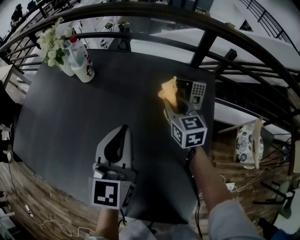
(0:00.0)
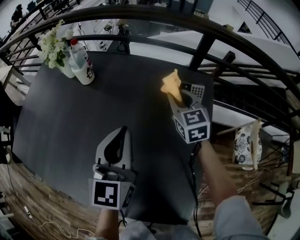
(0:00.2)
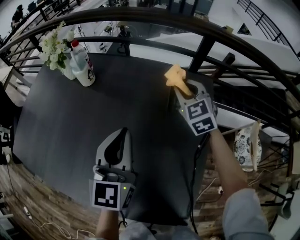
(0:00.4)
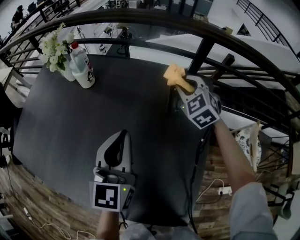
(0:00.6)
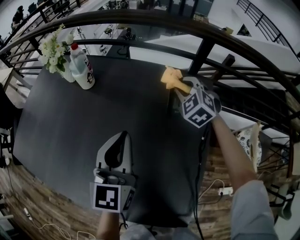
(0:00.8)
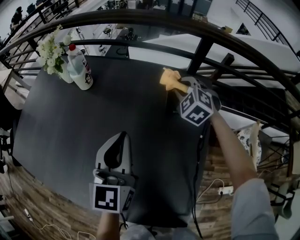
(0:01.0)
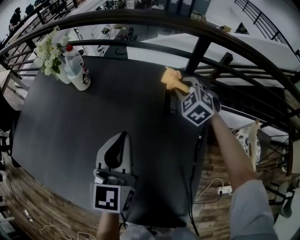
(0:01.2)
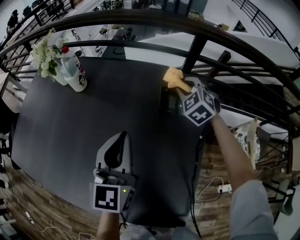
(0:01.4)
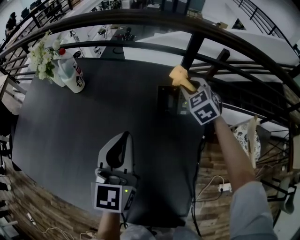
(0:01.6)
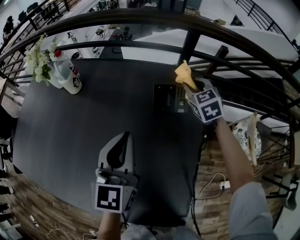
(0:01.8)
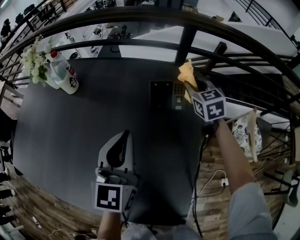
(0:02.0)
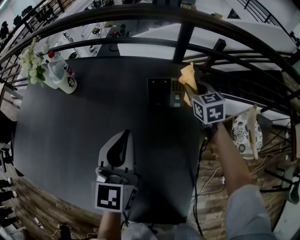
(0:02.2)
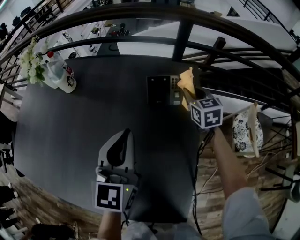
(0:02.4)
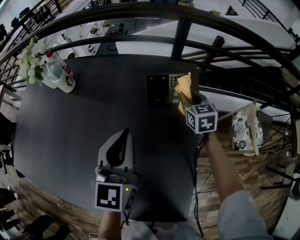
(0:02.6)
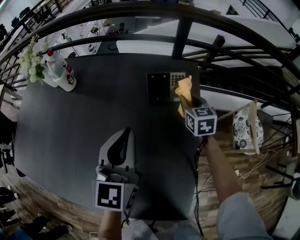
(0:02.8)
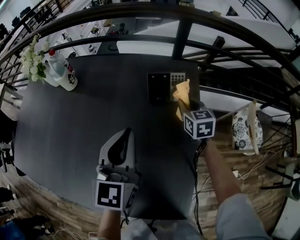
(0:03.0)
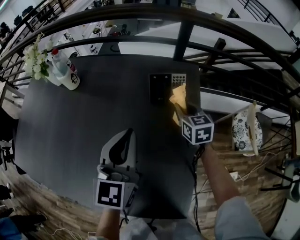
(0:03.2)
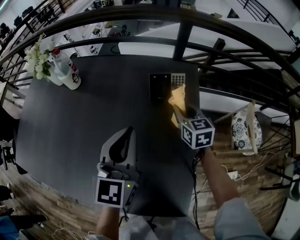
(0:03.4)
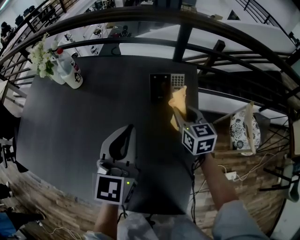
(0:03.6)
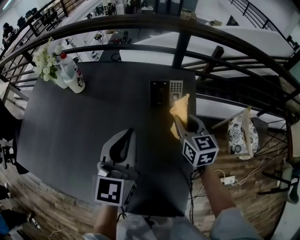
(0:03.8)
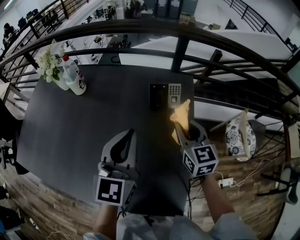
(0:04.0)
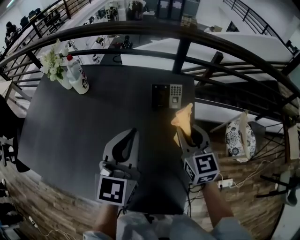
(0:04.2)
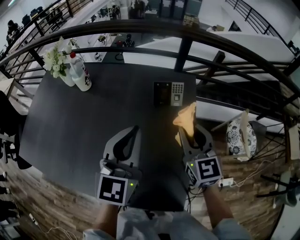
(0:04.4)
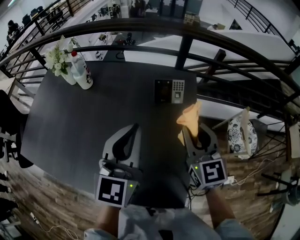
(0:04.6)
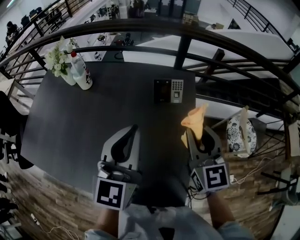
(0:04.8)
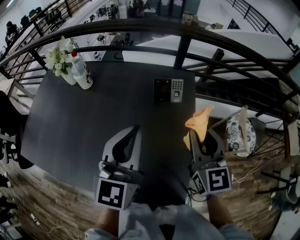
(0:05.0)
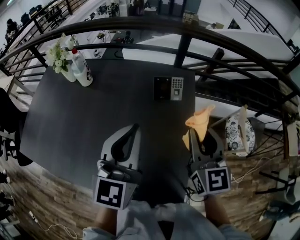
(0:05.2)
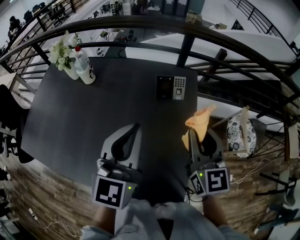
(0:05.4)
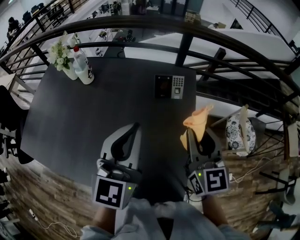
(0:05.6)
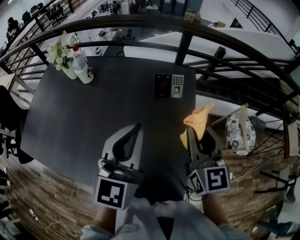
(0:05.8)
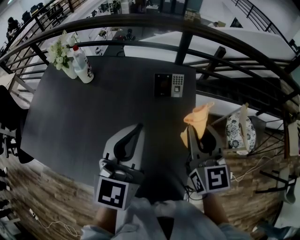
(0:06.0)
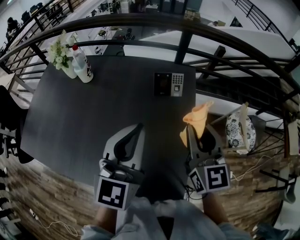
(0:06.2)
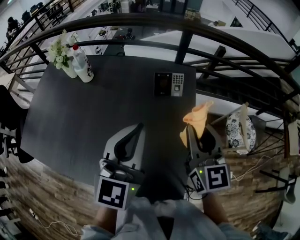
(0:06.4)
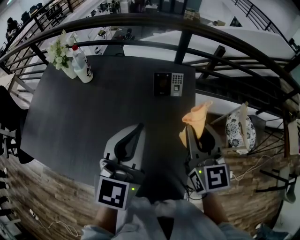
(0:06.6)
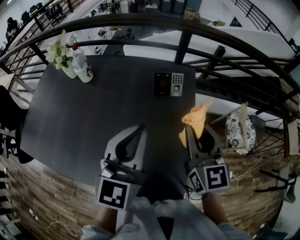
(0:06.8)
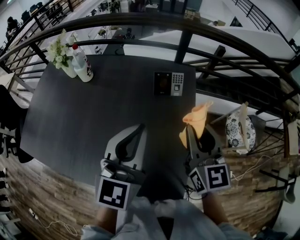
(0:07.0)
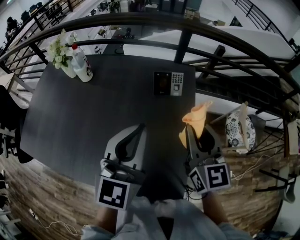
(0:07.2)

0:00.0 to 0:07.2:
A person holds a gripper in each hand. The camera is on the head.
0:00.0 to 0:01.4: The right gripper heads to the right and forward, covering approximately 10 cm, and rotates around the line of its fingers by approximately 40 degrees, counterclockwise from behind.
0:01.4 to 0:02.8: The right gripper heads to the right, backward and downward, covering about 15 cm, and rotates around the line of its fingers by approximately 50 degrees, clockwise from behind, while the left gripper travels to the right by approximately 5 cm.
0:02.8 to 0:04.4: The left gripper travels upward by about 10 cm. Meanwhile the right gripper is displaced upward and backward by about 25 cm, and changes its angle by about 20 degrees.
0:04.4 to 0:05.8: The left gripper shifts by some 5 cm. Meanwhile the right gripper goes approximately 5 cm upward.
0:05.8 to 0:07.2: Both grippers stay put.

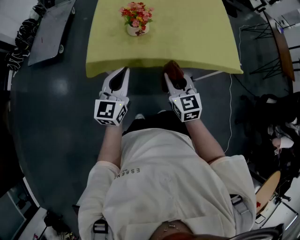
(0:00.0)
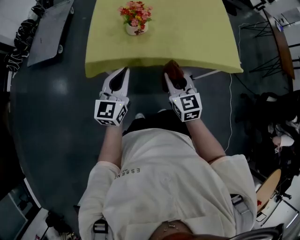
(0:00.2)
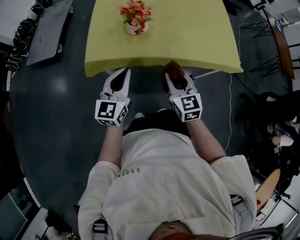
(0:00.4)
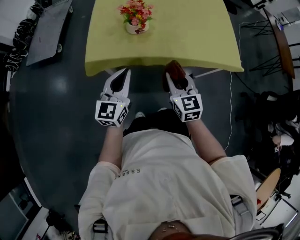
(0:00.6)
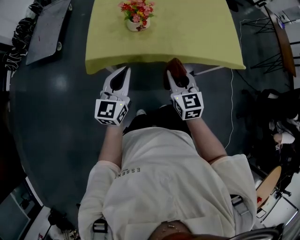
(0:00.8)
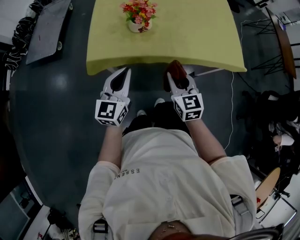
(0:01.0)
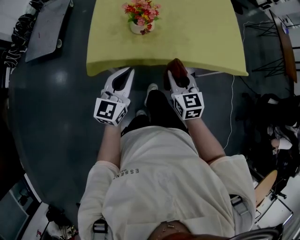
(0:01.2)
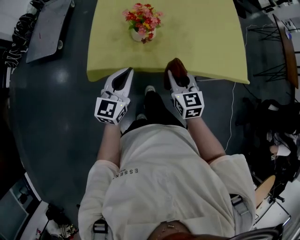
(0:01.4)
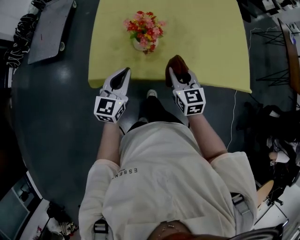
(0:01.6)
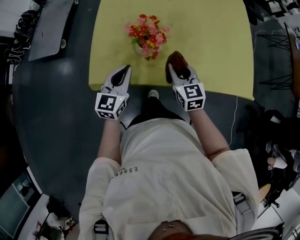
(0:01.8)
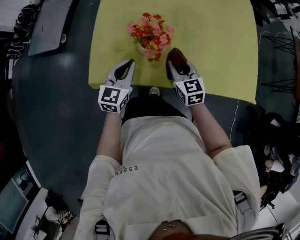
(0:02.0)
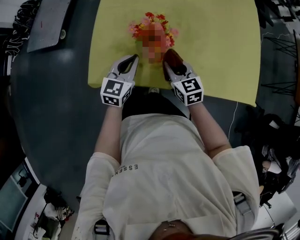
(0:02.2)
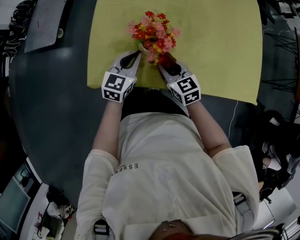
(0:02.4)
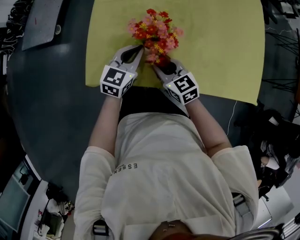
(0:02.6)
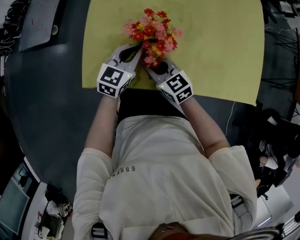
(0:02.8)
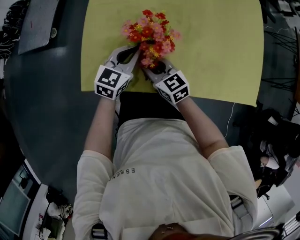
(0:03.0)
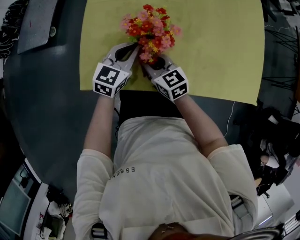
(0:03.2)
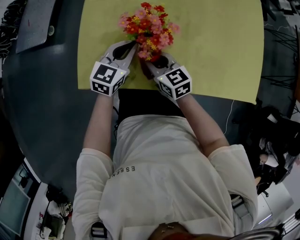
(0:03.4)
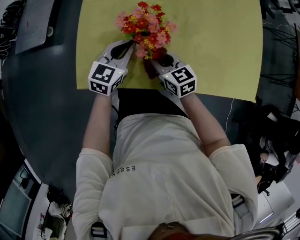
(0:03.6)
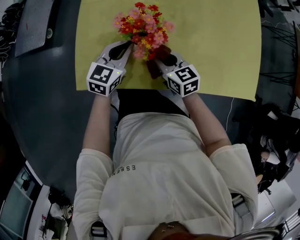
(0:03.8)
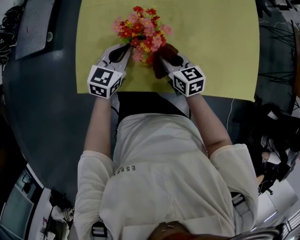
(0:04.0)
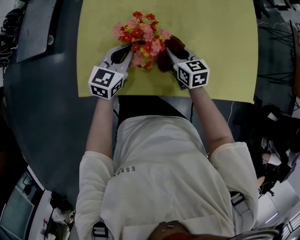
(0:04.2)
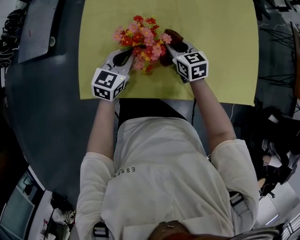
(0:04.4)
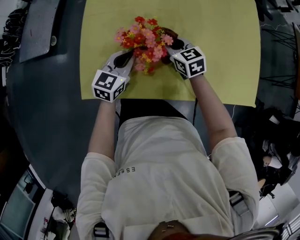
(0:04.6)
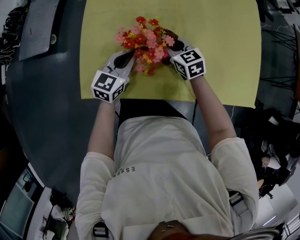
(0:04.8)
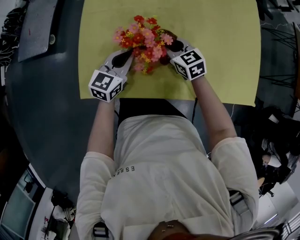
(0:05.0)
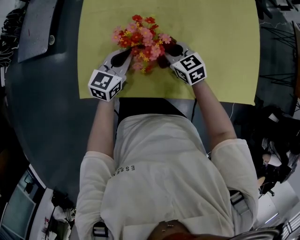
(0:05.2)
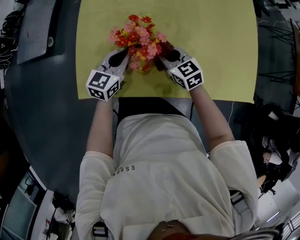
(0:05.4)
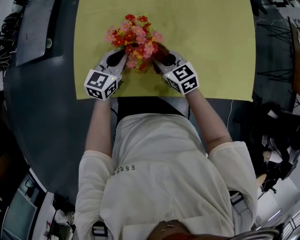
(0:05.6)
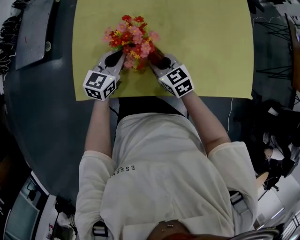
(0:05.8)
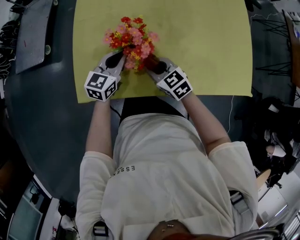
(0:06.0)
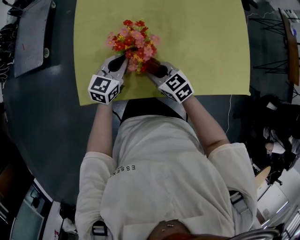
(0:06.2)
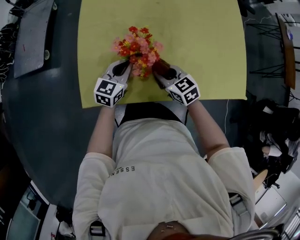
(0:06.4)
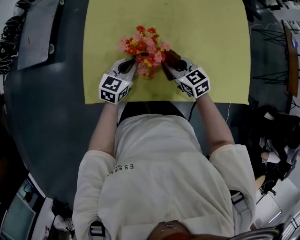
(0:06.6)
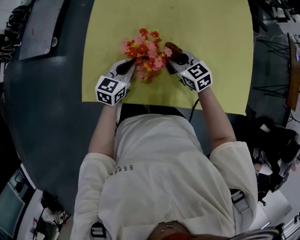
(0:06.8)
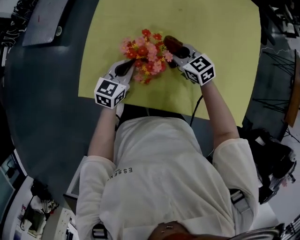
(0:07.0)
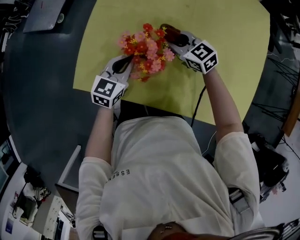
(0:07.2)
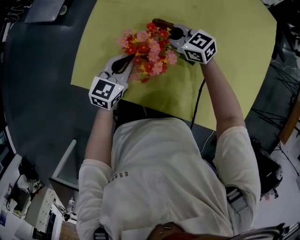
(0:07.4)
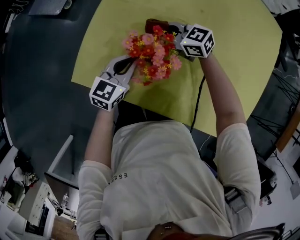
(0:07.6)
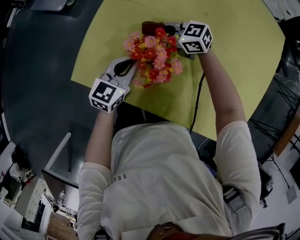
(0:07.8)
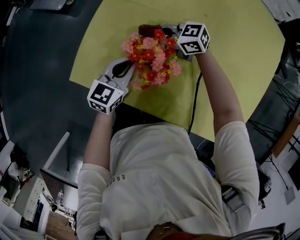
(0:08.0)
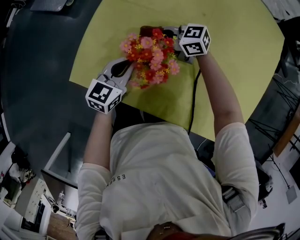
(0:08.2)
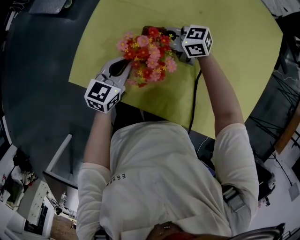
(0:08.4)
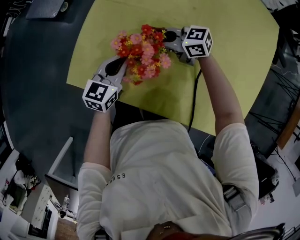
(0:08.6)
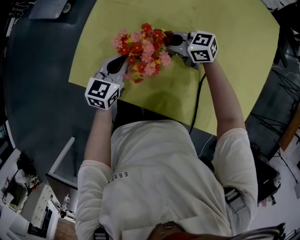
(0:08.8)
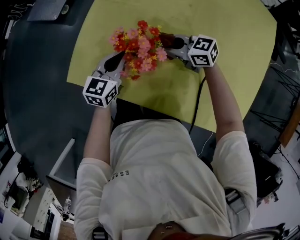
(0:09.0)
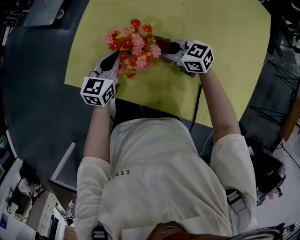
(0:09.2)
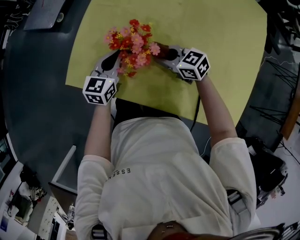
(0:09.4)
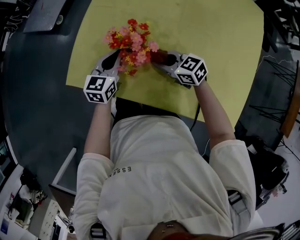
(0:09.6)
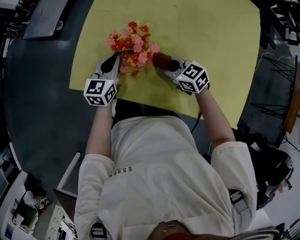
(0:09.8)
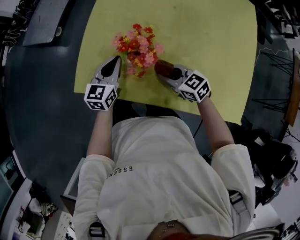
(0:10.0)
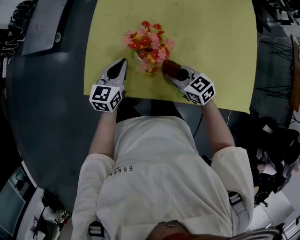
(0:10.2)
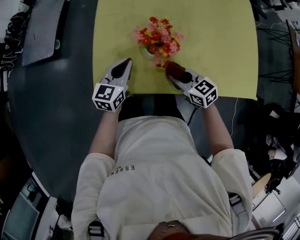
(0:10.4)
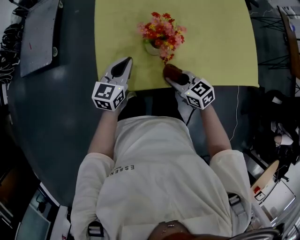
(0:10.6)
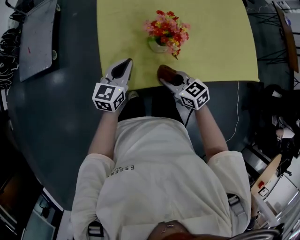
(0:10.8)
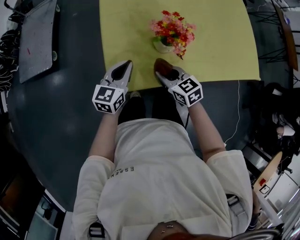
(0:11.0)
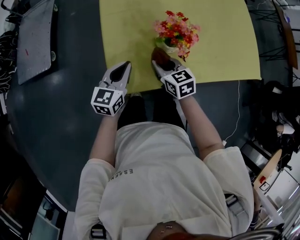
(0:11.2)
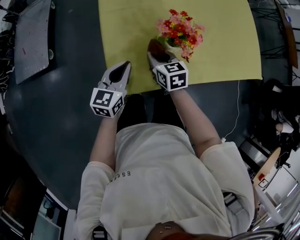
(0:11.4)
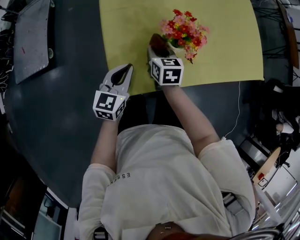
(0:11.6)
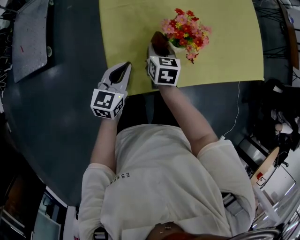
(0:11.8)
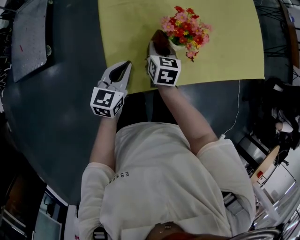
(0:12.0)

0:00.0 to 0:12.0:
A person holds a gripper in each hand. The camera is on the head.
0:00.0 to 0:01.6: The right gripper heads forward, covering some 15 cm, while the left gripper heads forward and downward, covering roughly 15 cm.
0:01.6 to 0:03.0: The right gripper travels to the left, downward and forward by about 20 cm, and turns by approximately 30 degrees; the left gripper moves forward and downward, roughly 15 cm.
0:03.0 to 0:04.4: The right gripper moves to the right and forward, approximately 15 cm.
0:04.4 to 0:06.0: The right gripper heads backward and to the left, covering some 10 cm.
0:06.0 to 0:07.6: The right gripper ends up roughly 15 cm from where it was, and turns by about 40 degrees.
0:07.6 to 0:09.0: The right gripper ends up about 10 cm from where it was.
0:09.0 to 0:10.4: The right gripper moves roughly 15 cm, and swivels approximately 40 degrees. The left gripper changes place by about 10 cm.
0:10.4 to 0:12.0: The right gripper shifts by about 15 cm, and changes its angle by approximately 50 degrees. Meanwhile the left gripper moves approximately 10 cm.

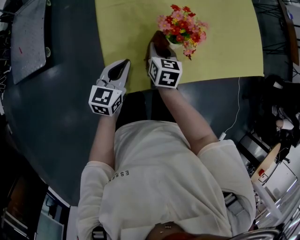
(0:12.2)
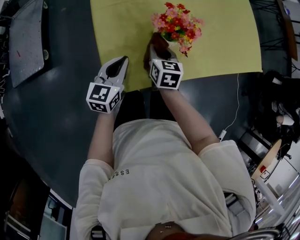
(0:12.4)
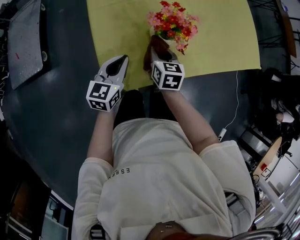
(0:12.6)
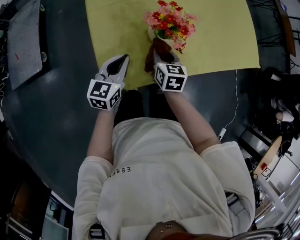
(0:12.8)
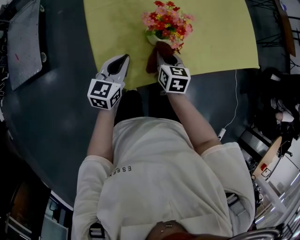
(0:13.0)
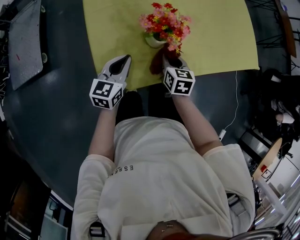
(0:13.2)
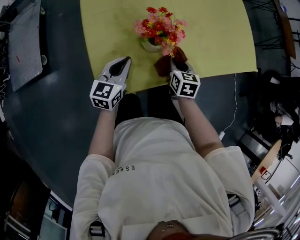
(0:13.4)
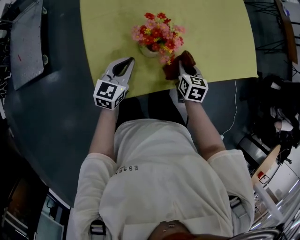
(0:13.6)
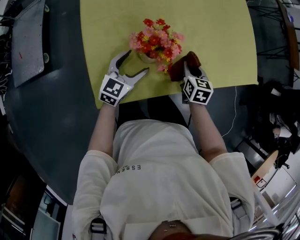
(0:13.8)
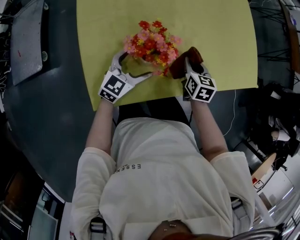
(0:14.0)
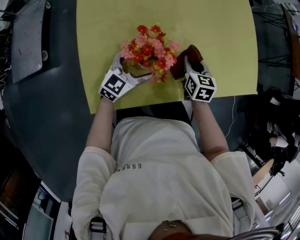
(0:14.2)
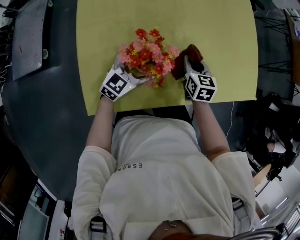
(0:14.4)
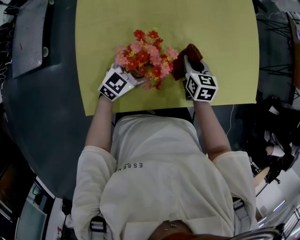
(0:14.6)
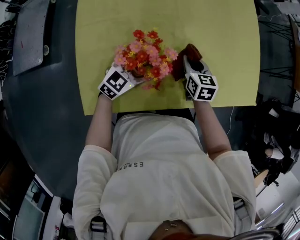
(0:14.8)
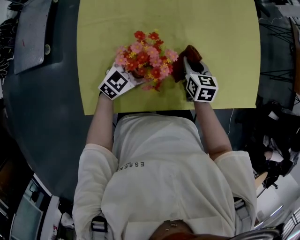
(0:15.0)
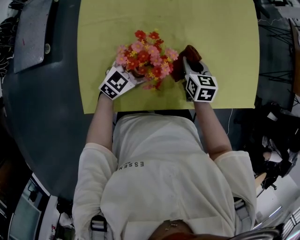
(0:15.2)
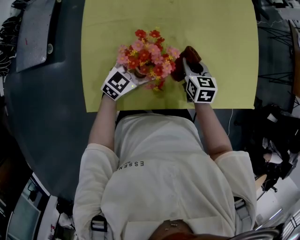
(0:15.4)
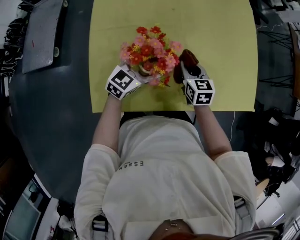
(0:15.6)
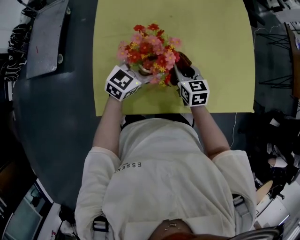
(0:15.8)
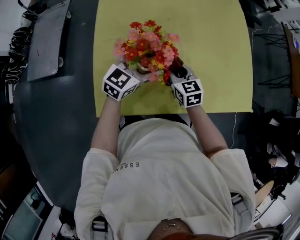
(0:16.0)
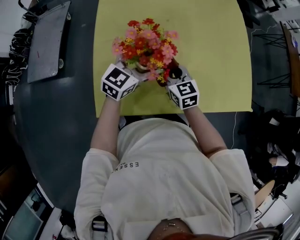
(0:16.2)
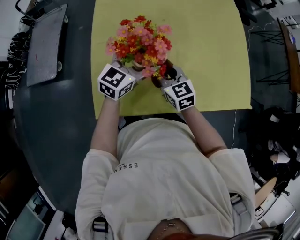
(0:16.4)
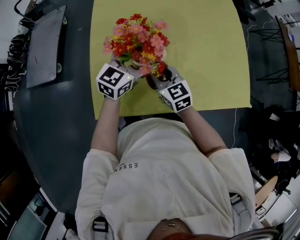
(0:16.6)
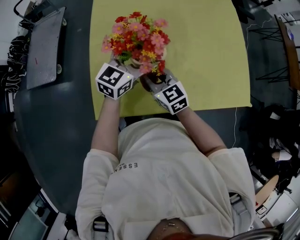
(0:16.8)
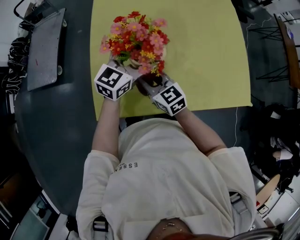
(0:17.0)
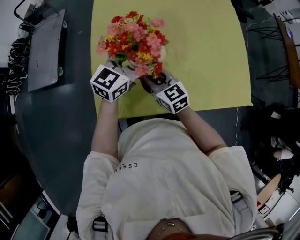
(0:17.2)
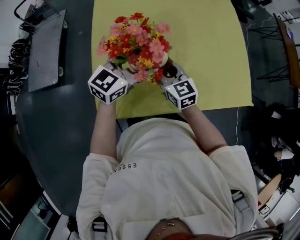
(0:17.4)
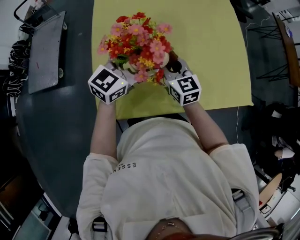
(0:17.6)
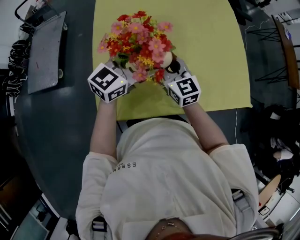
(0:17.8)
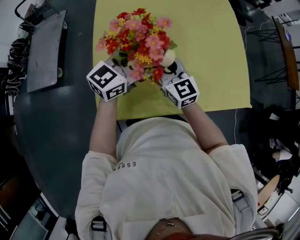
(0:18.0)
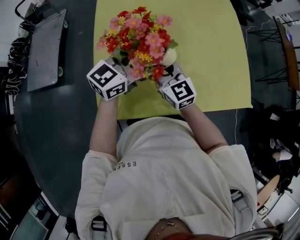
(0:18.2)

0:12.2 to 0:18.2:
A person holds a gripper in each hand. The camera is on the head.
0:12.2 to 0:13.8: The right gripper shifts roughly 20 cm to the right. The left gripper travels to the right and forward by roughly 15 cm, and opens.
0:13.8 to 0:15.2: The right gripper shifts roughly 10 cm forward. The left gripper moves forward and to the right, some 10 cm.
0:15.2 to 0:16.6: The right gripper travels to the left, upward and backward by some 20 cm, and changes its angle by about 30 degrees. Meanwhile the left gripper shifts about 20 cm upward.
0:16.6 to 0:18.2: Both grippers move upward, about 5 cm.
